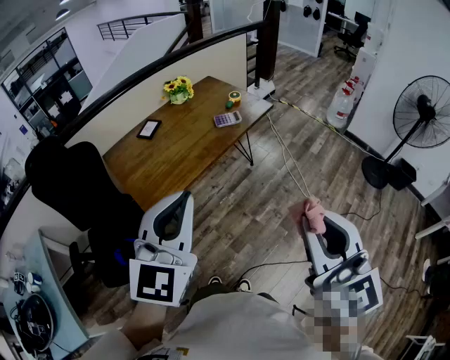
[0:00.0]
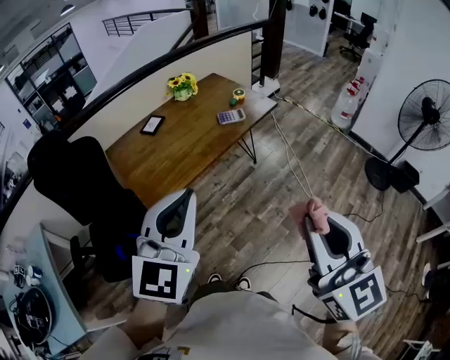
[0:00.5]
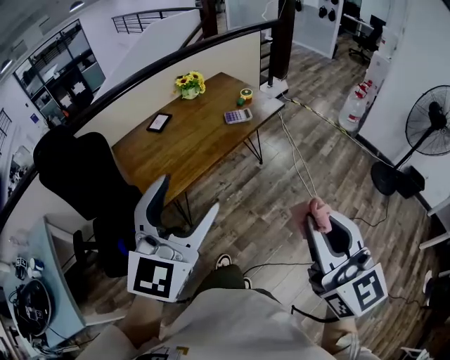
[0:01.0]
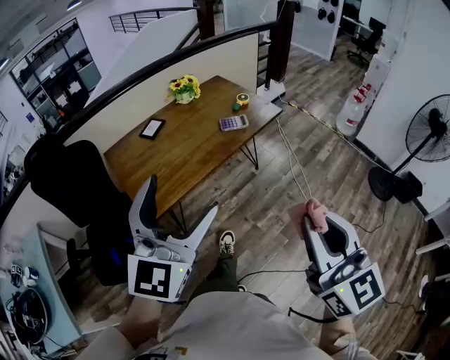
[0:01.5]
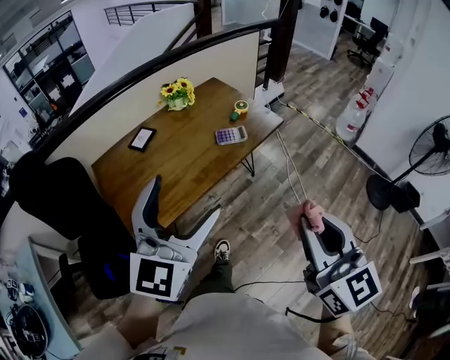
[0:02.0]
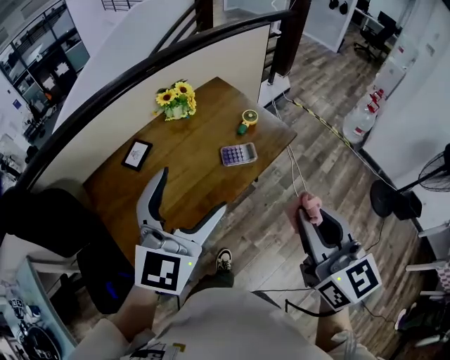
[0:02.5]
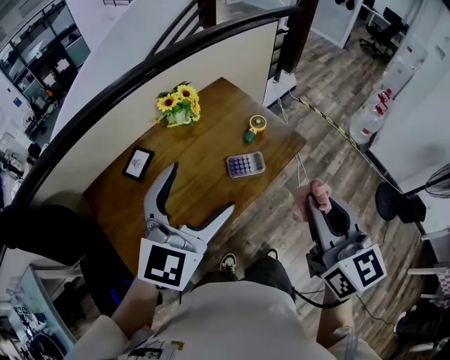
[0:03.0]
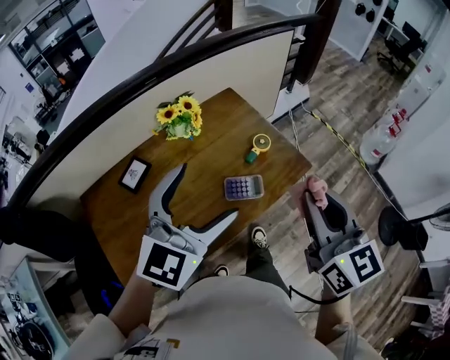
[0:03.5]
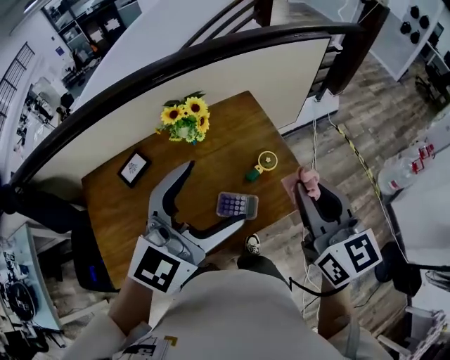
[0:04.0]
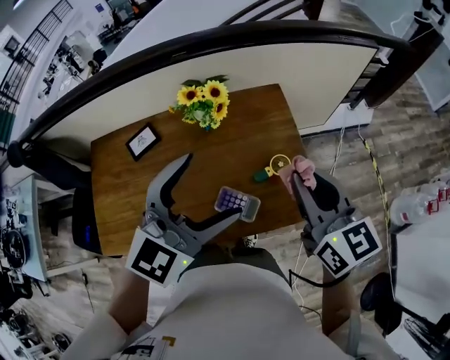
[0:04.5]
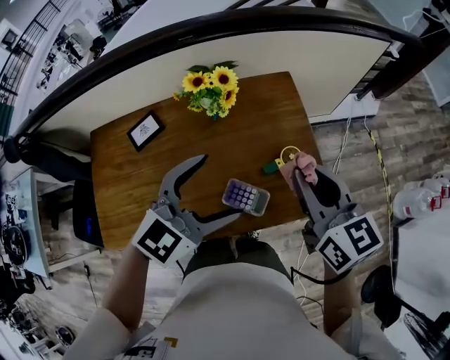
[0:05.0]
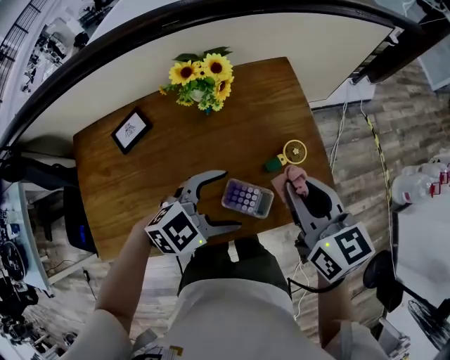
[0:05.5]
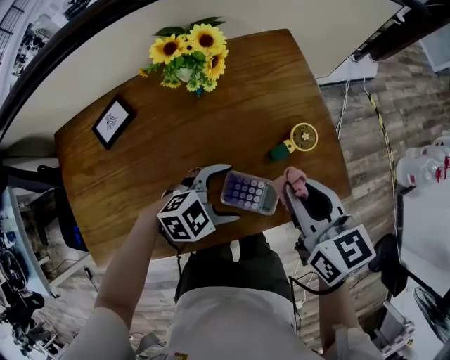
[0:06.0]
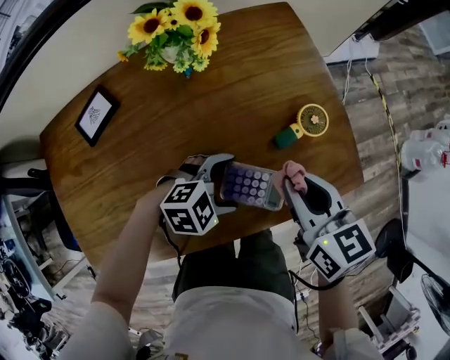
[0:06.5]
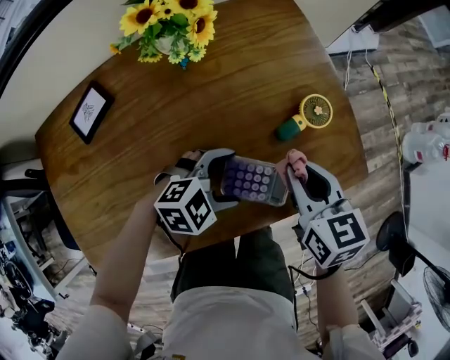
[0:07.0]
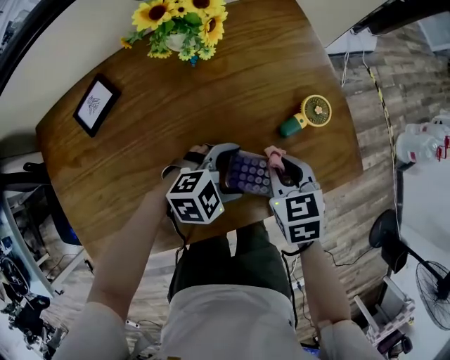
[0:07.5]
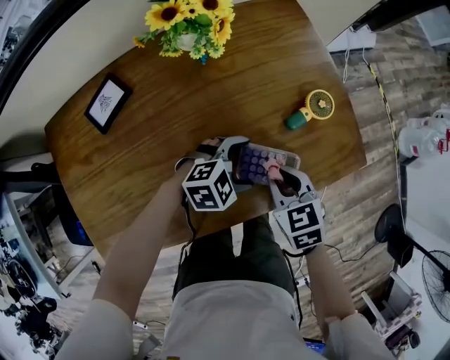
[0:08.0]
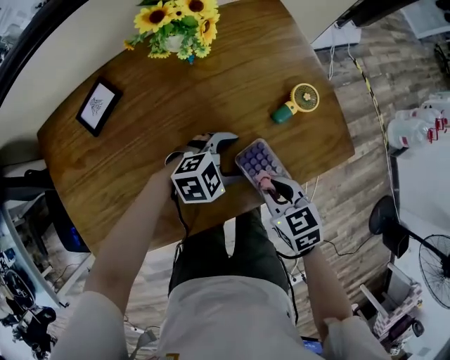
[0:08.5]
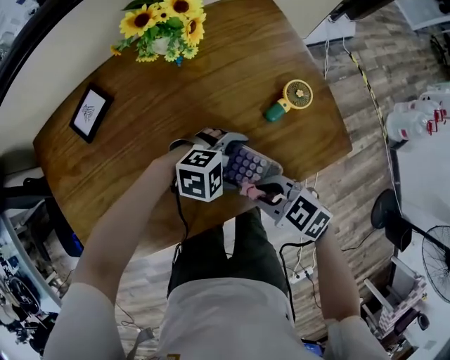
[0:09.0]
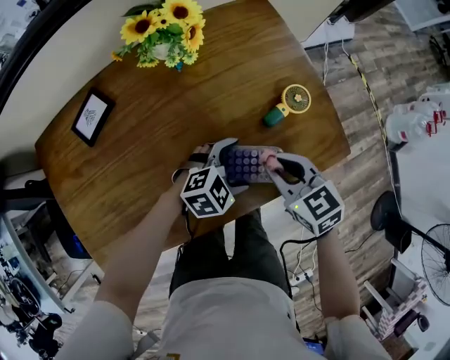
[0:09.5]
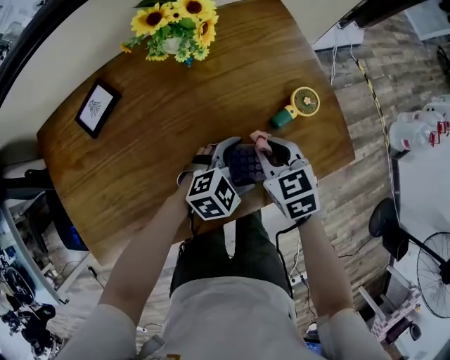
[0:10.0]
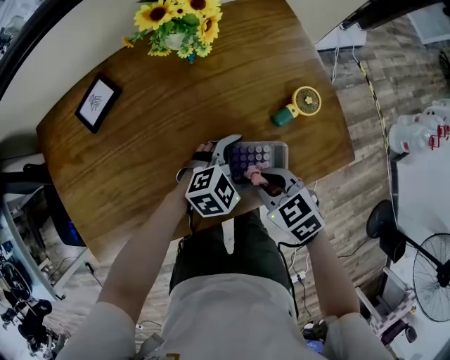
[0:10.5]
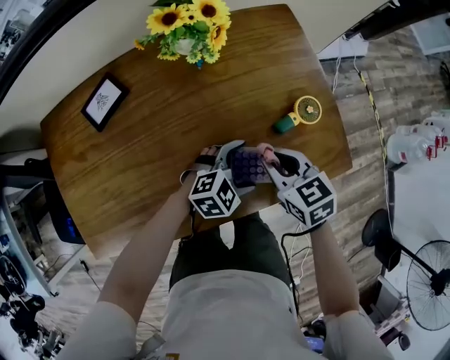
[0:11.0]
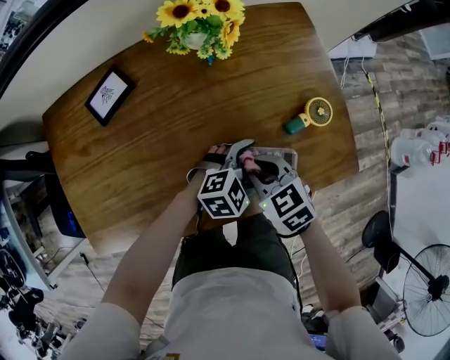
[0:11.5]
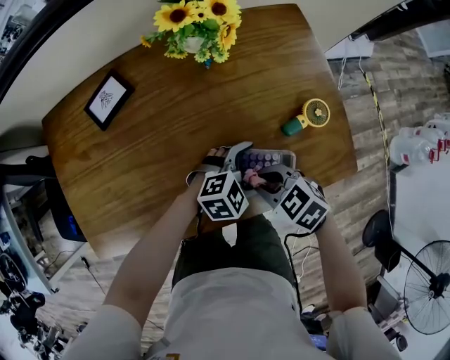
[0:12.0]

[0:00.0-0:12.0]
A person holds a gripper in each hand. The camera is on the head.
0:00.0 to 0:02.0: The two grippers go approximately 20 cm forward. The left gripper opens its fingers.
0:02.0 to 0:04.0: The two grippers travel together, forward, approximately 50 cm. The right gripper rotates approximately 20 degrees.
0:04.0 to 0:06.0: The left gripper heads downward, covering roughly 40 cm, and tips its fingers downward by some 30 degrees, while the right gripper travels downward by roughly 25 cm, and rotates about 30 degrees.
0:06.0 to 0:08.0: The right gripper shifts roughly 20 cm downward and backward, and turns by roughly 30 degrees; the left gripper shifts roughly 5 cm downward.
0:08.0 to 0:10.0: The right gripper ends up approximately 5 cm from where it was.
0:10.0 to 0:12.0: The right gripper shifts by roughly 10 cm, and changes its angle by roughly 40 degrees.

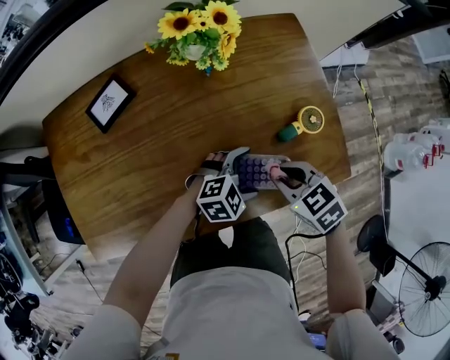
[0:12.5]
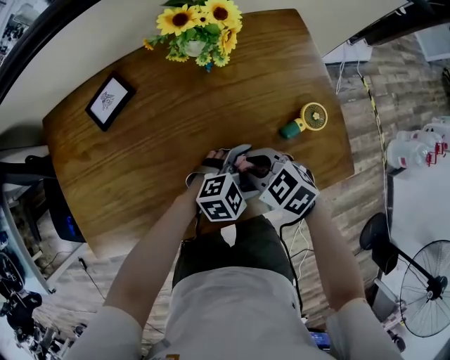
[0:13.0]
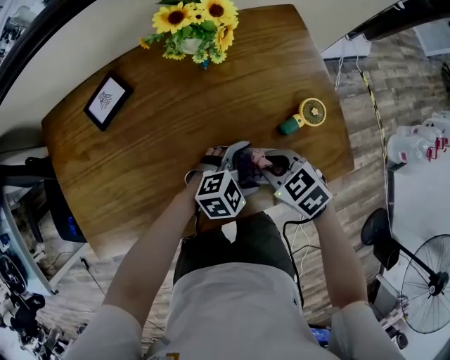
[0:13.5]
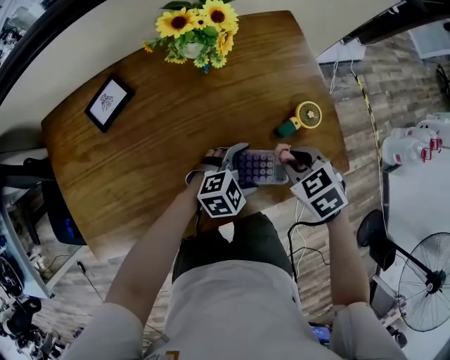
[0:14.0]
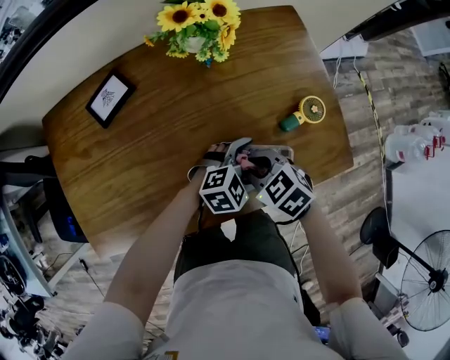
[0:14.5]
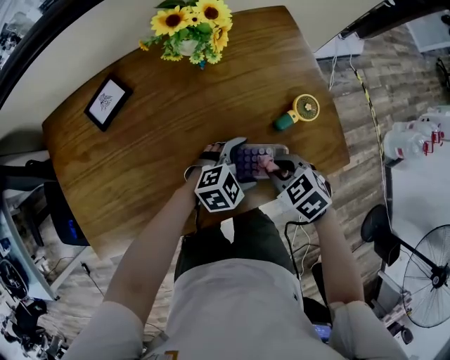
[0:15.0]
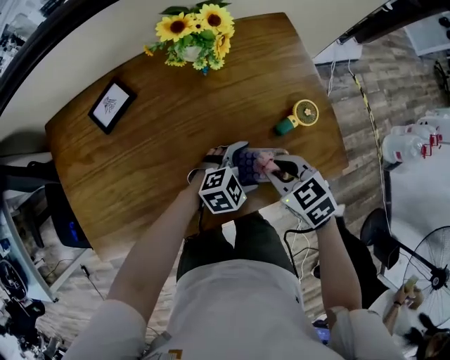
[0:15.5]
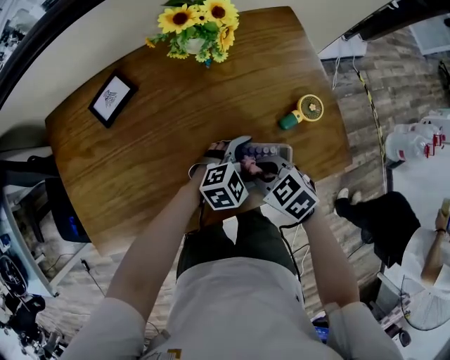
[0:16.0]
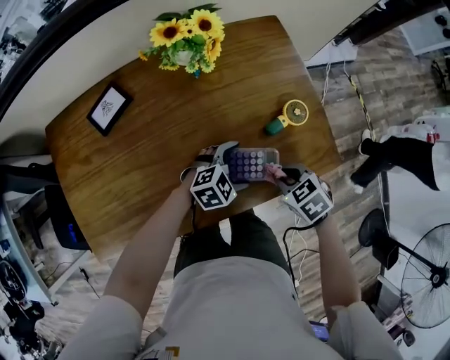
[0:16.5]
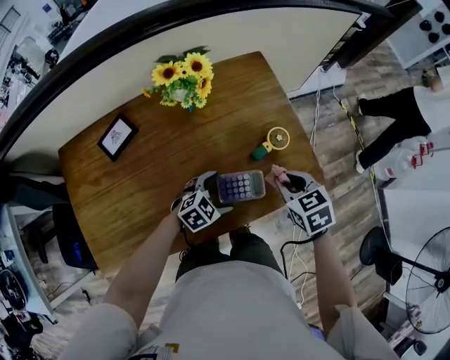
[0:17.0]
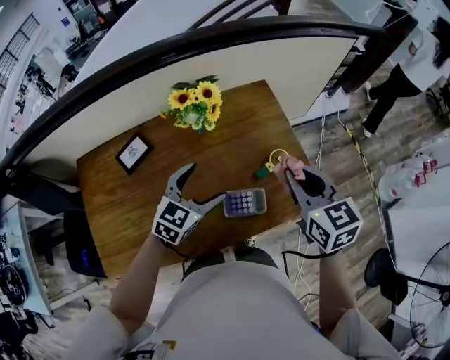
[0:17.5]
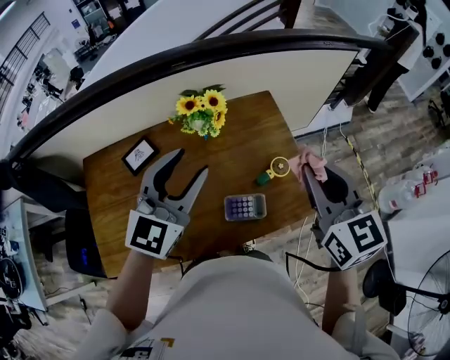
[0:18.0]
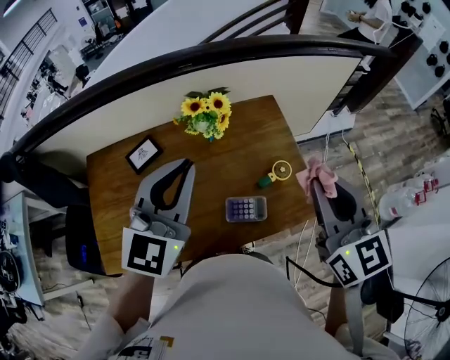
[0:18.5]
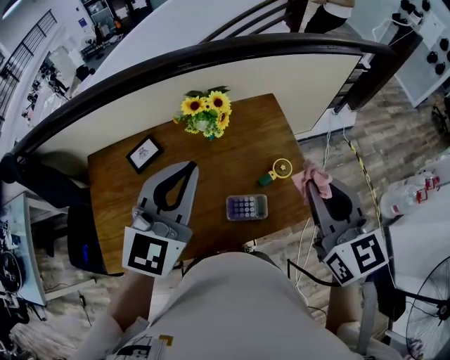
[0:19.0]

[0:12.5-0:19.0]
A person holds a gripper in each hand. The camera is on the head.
0:12.5 to 0:14.5: The right gripper moves roughly 10 cm.
0:14.5 to 0:17.0: The right gripper swings up and down, about 10 cm each way, with 2 reversals, and rotates approximately 30 degrees.
0:17.0 to 0:19.0: Both grippers move upward, some 35 cm. The left gripper tips its fingers upward by roughly 40 degrees, and closes; the right gripper tilts its fingers roughly 40 degrees upward.

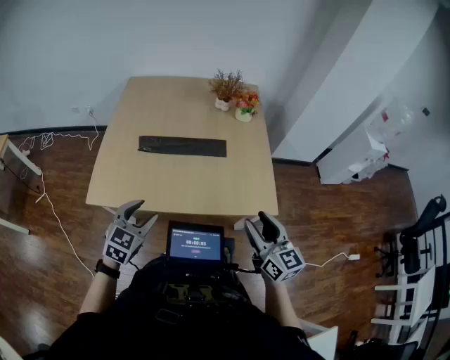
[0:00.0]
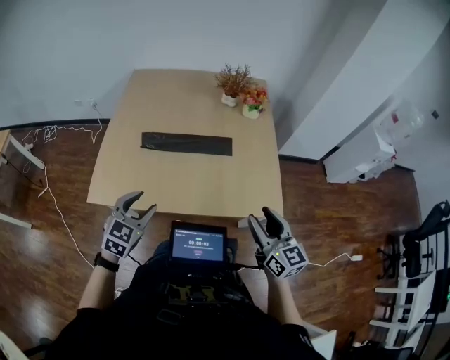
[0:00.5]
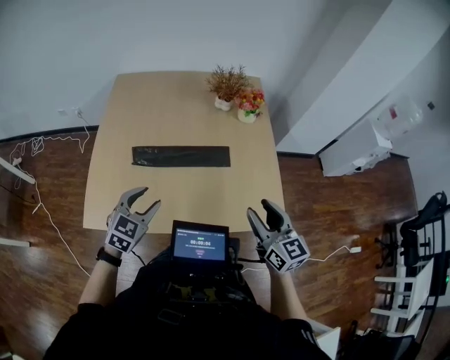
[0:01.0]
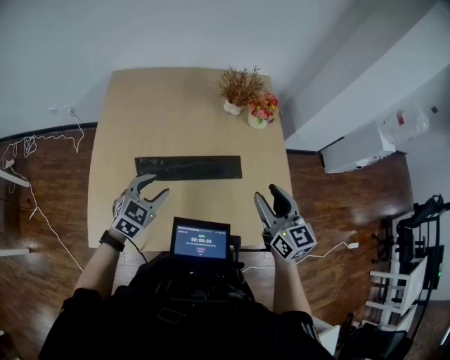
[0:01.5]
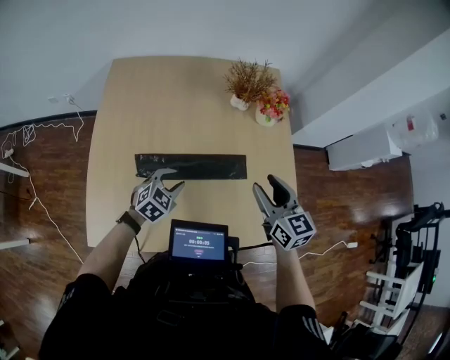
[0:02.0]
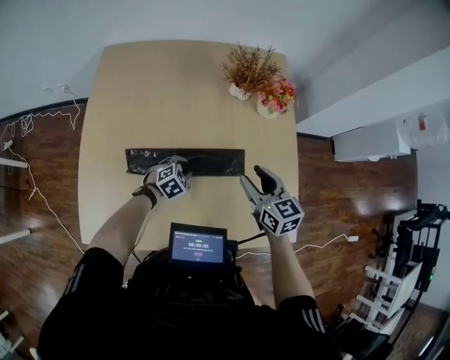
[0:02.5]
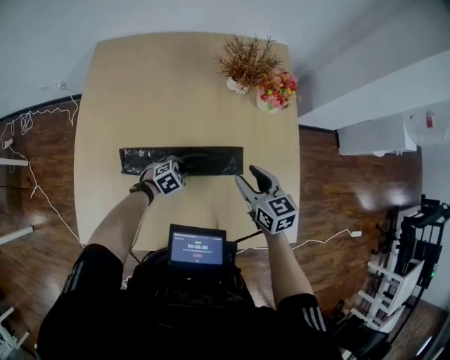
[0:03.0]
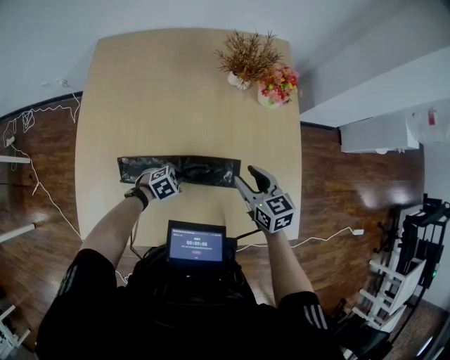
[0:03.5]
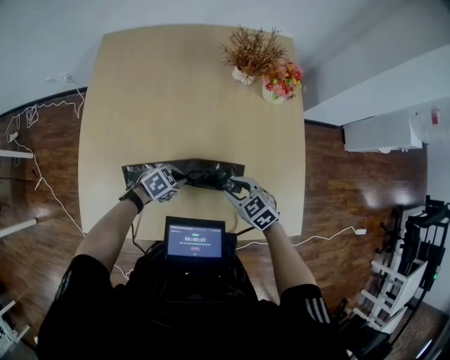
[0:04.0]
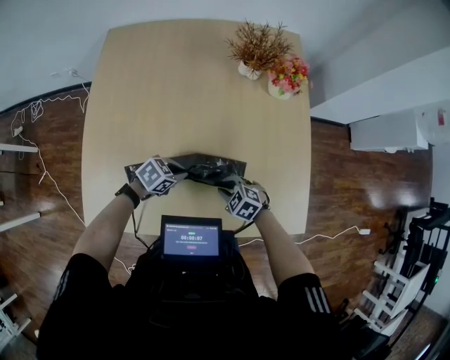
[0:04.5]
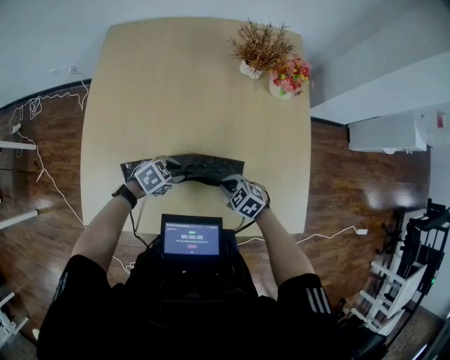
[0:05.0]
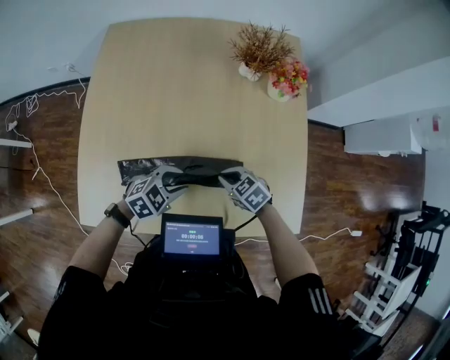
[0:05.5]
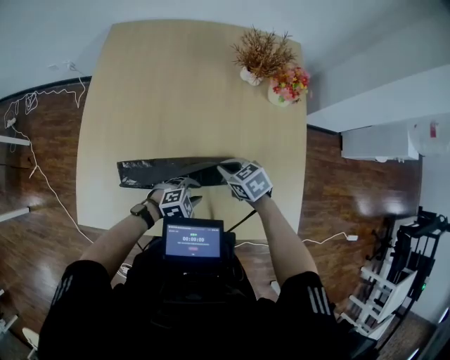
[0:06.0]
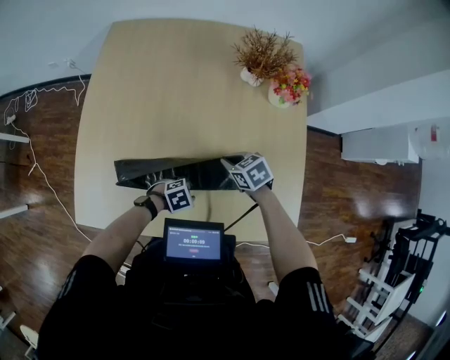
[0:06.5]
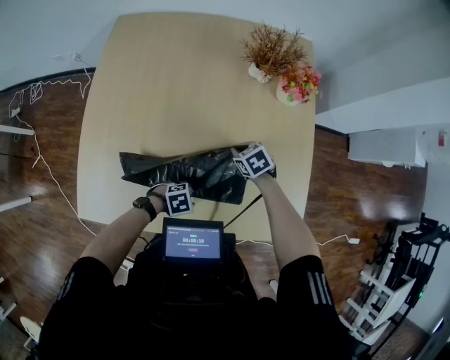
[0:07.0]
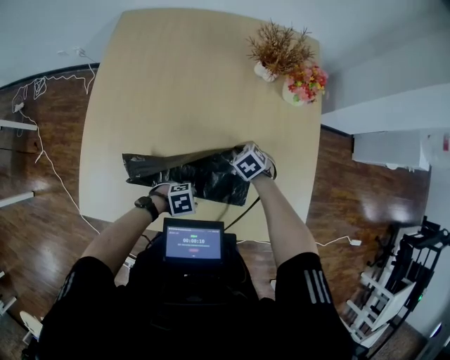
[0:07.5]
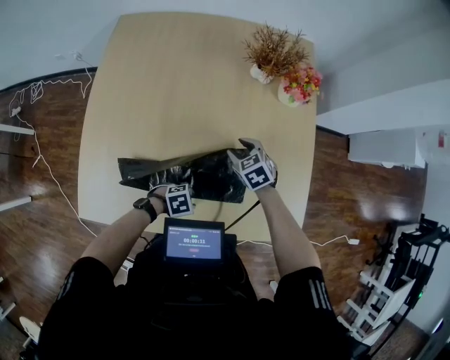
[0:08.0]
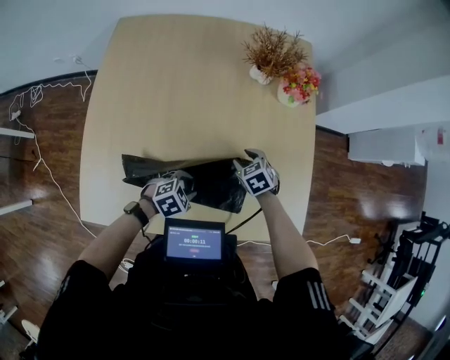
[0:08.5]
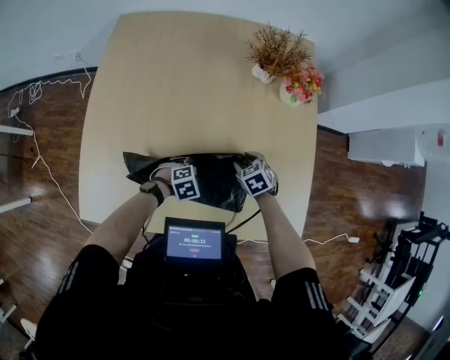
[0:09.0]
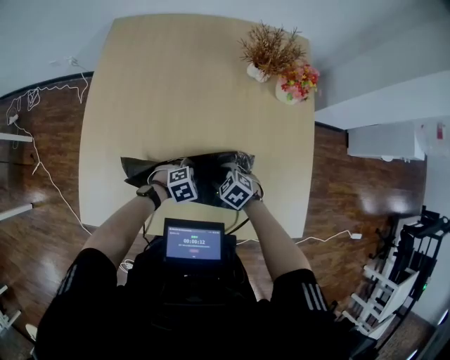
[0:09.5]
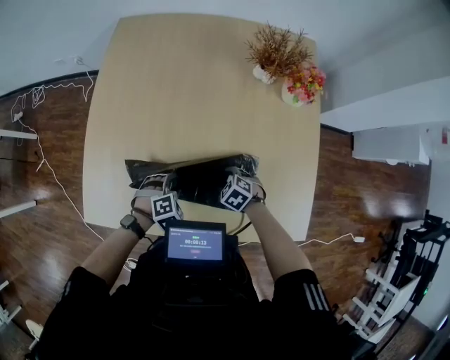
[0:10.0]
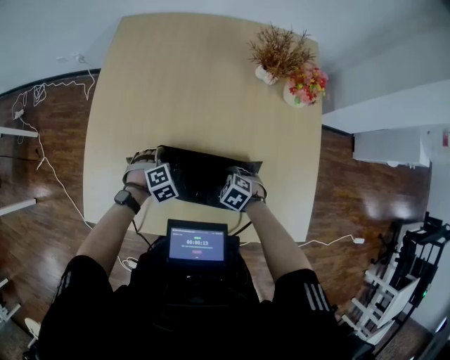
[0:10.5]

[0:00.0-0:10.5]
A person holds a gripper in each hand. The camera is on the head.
0:00.0 to 0:02.0: The right gripper travels forward by some 35 cm, while the left gripper is displaced forward and downward by approximately 35 cm, and swivels some 20 degrees.
0:02.0 to 0:04.0: The right gripper shifts about 20 cm downward, and swivels roughly 40 degrees; the left gripper is displaced downward by roughly 10 cm, and swivels about 30 degrees.
0:04.0 to 0:06.5: The left gripper goes upward and returns, approximately 10 cm each way, while the right gripper reaches roughly 10 cm downward, then returns.
0:06.5 to 0:08.5: The right gripper opens up, while the left gripper travels upward by approximately 5 cm.
0:08.5 to 0:10.5: The left gripper ends up roughly 15 cm from where it was, and swivels about 40 degrees; the right gripper ends up about 15 cm from where it was, and turns by some 30 degrees.
